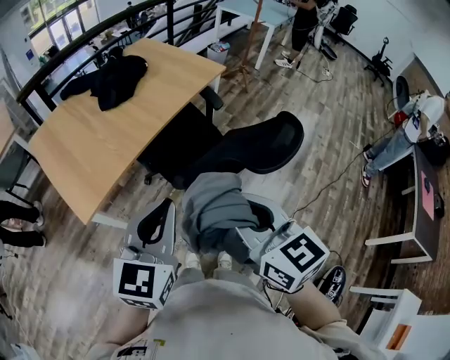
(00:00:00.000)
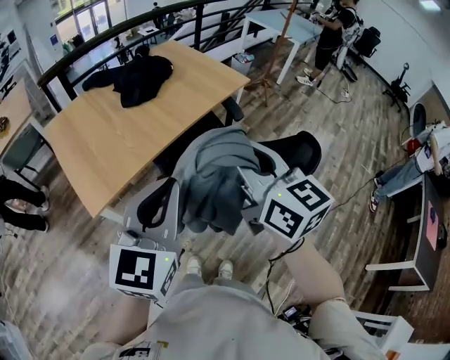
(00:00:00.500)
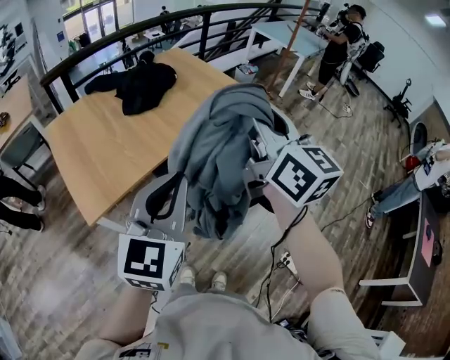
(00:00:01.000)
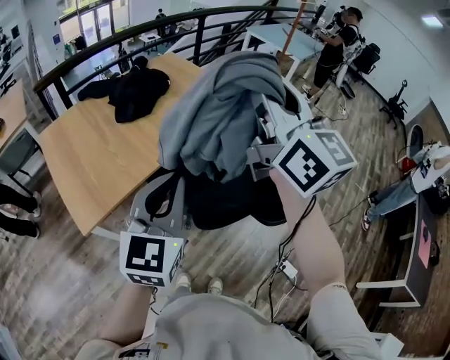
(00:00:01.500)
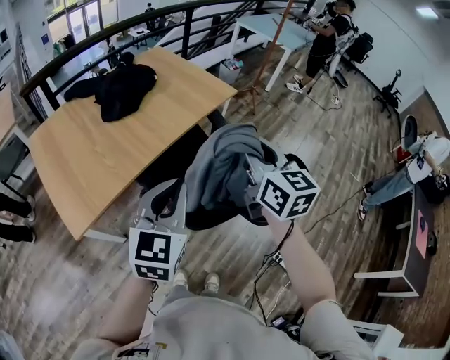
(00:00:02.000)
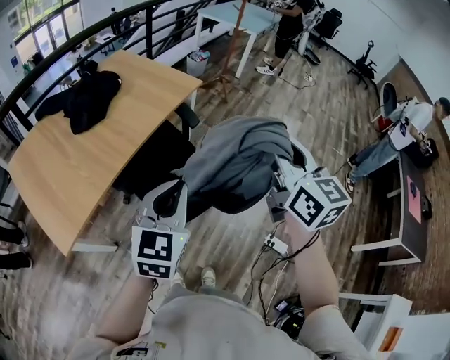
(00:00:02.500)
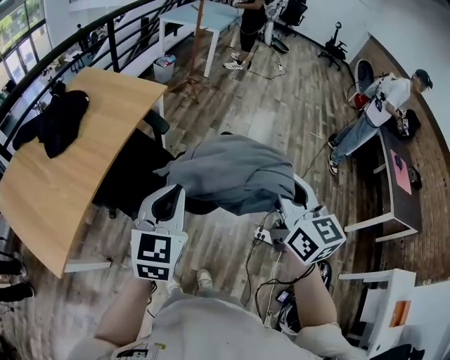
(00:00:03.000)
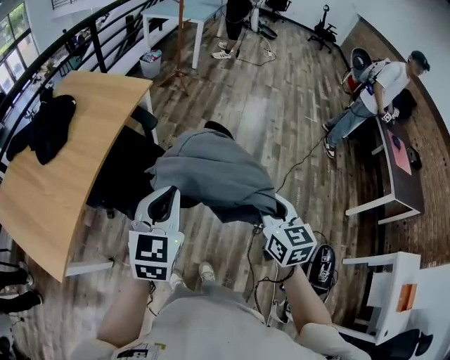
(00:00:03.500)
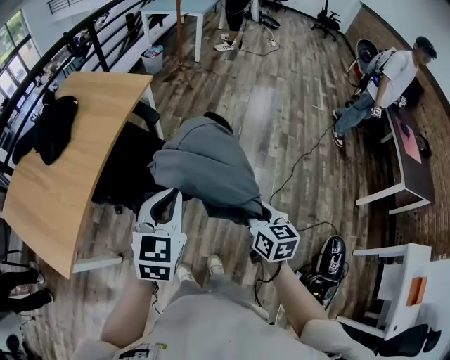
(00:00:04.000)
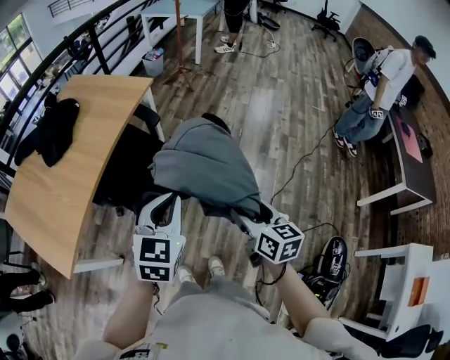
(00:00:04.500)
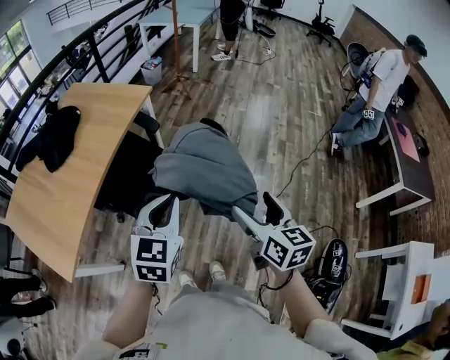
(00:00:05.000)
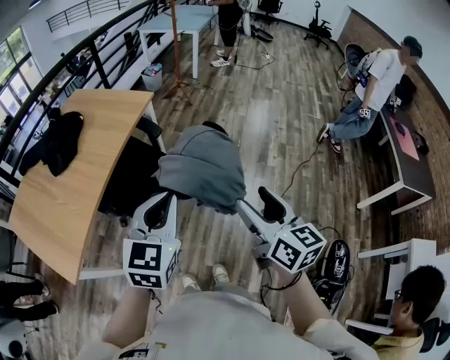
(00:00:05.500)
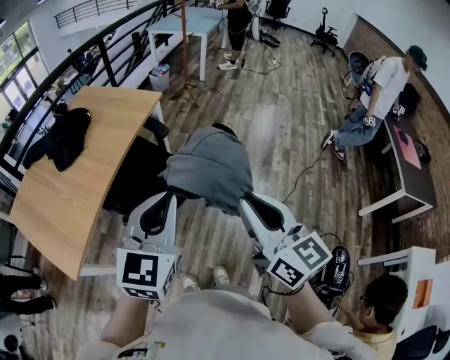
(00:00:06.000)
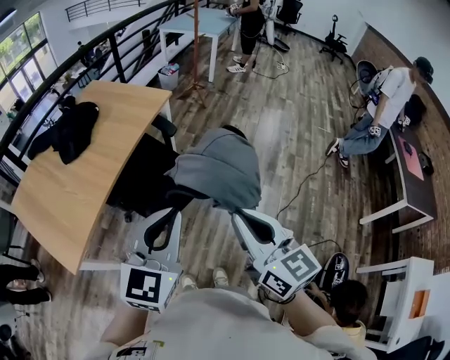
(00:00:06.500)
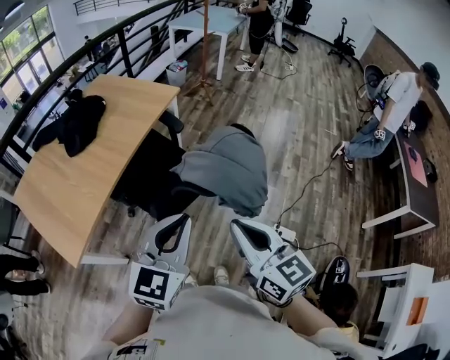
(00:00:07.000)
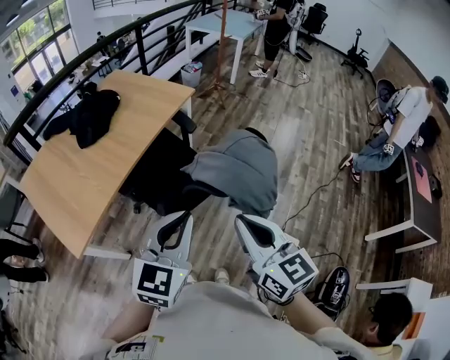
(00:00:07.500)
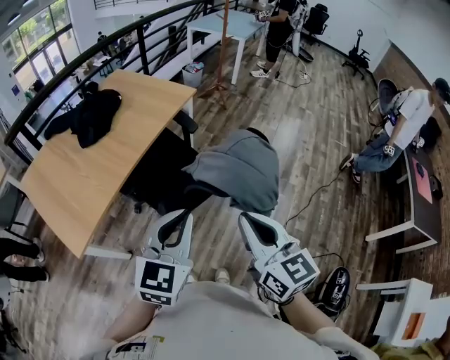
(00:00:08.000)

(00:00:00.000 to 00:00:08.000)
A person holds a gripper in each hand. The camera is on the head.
00:00:00.000 - 00:00:02.000: The right gripper shifts some 25 cm forward. Meanwhile the left gripper heads forward, covering approximately 15 cm.
00:00:02.000 - 00:00:04.000: The right gripper shifts by approximately 40 cm, and turns by some 40 degrees, while the left gripper shifts by approximately 25 cm, and turns by approximately 20 degrees.
00:00:04.000 - 00:00:06.000: The left gripper heads upward and backward, covering approximately 15 cm, while the right gripper is displaced upward by some 20 cm, swivels some 30 degrees, and opens, then closes again.
00:00:06.000 - 00:00:08.000: The left gripper shifts by roughly 5 cm. The right gripper is displaced to the left by approximately 5 cm.

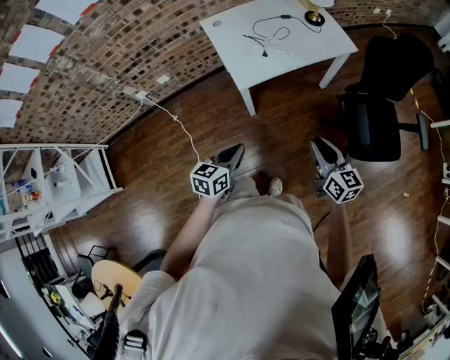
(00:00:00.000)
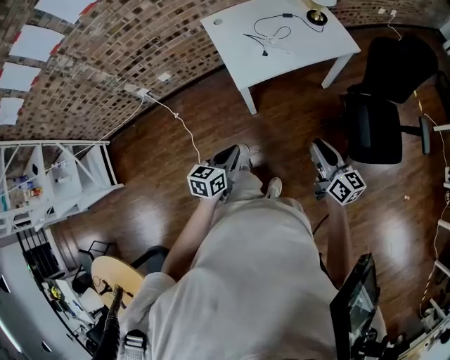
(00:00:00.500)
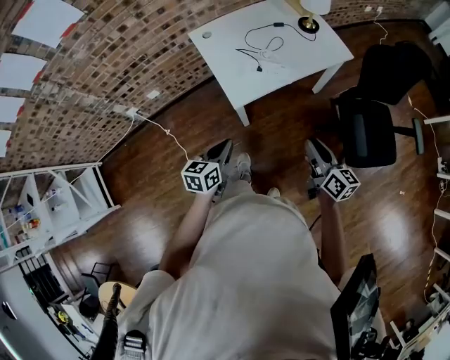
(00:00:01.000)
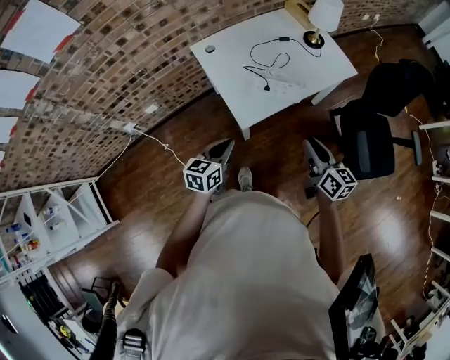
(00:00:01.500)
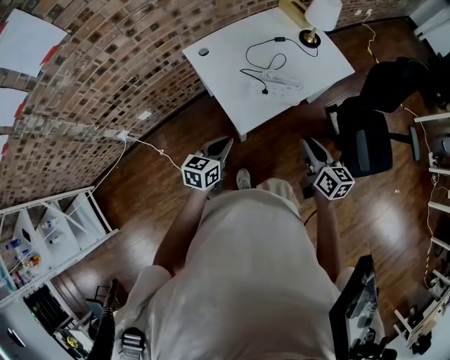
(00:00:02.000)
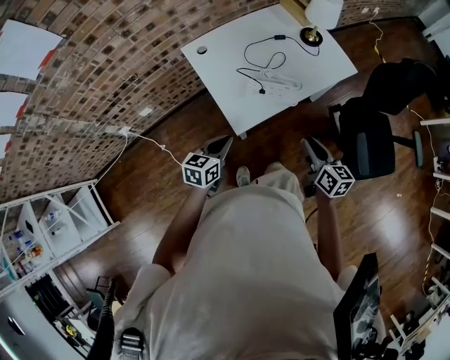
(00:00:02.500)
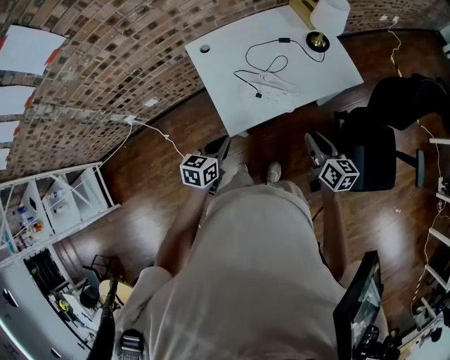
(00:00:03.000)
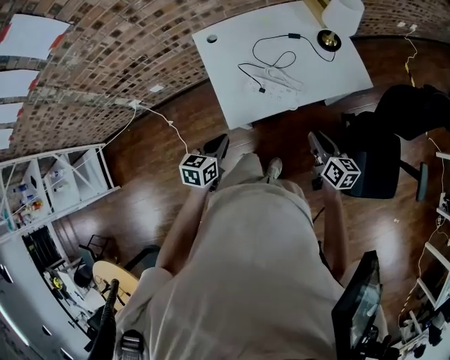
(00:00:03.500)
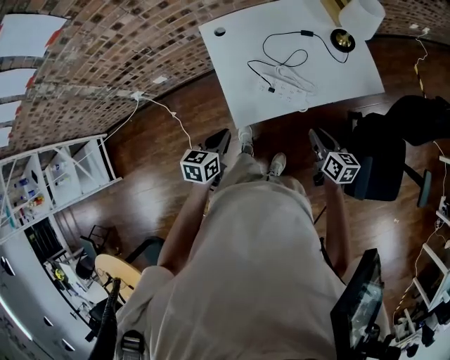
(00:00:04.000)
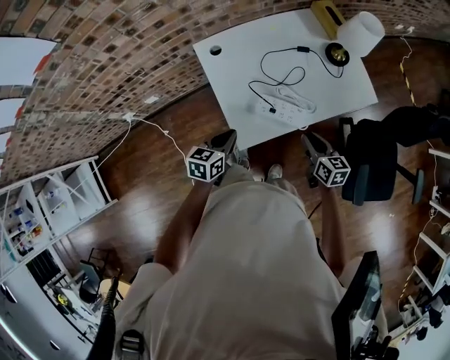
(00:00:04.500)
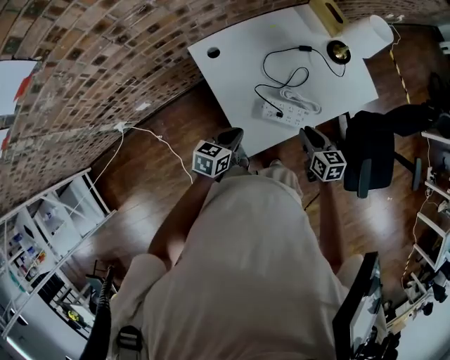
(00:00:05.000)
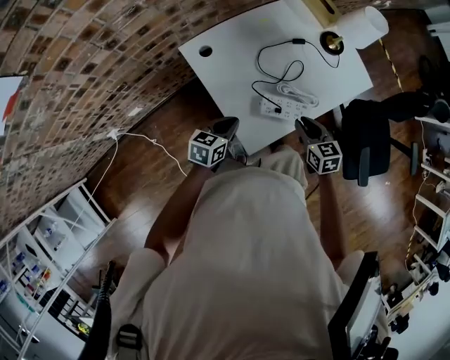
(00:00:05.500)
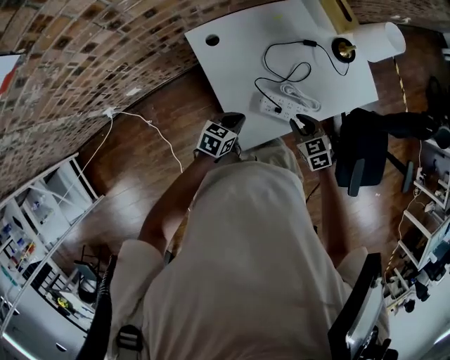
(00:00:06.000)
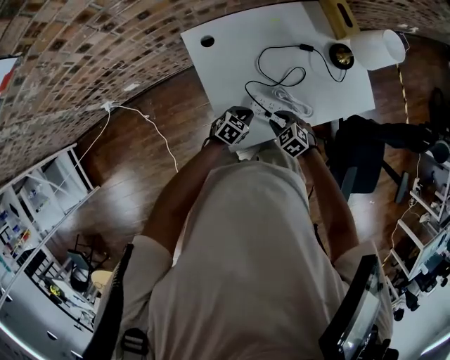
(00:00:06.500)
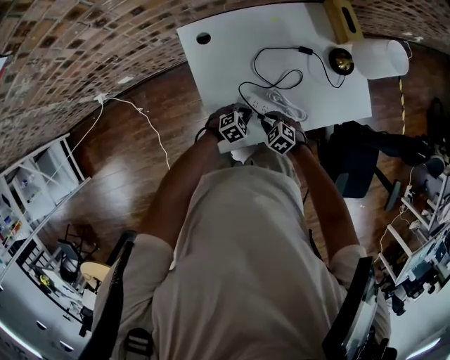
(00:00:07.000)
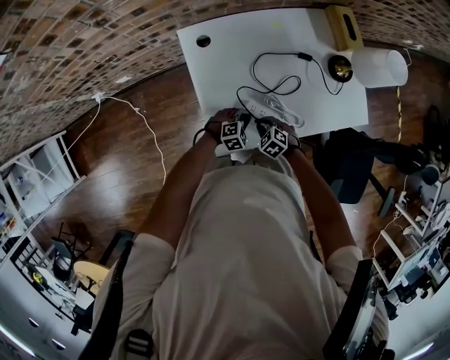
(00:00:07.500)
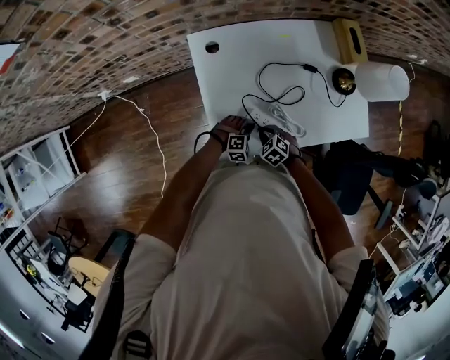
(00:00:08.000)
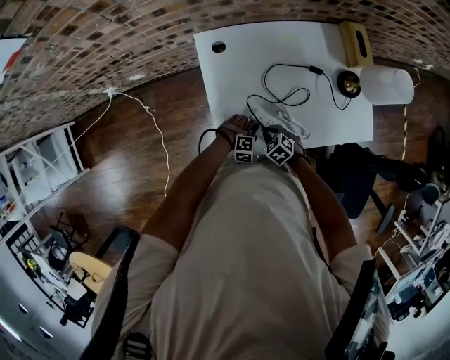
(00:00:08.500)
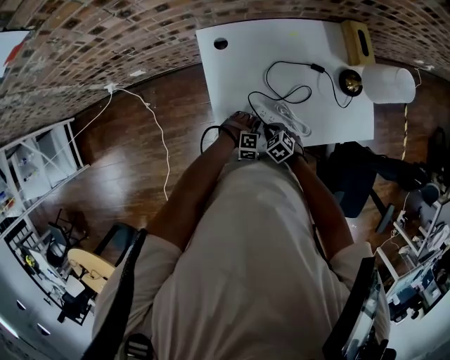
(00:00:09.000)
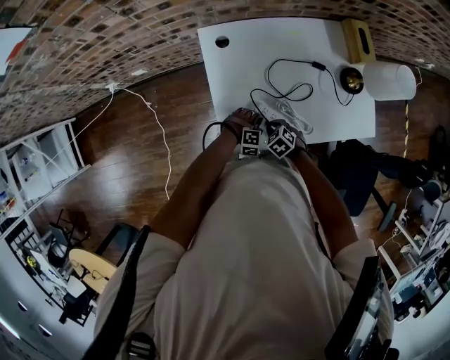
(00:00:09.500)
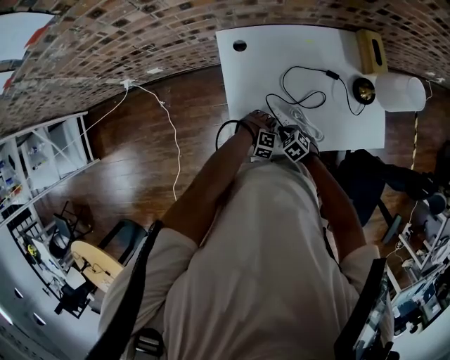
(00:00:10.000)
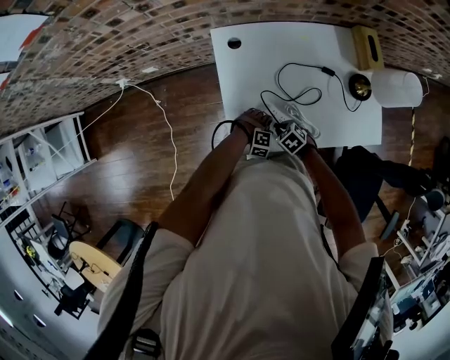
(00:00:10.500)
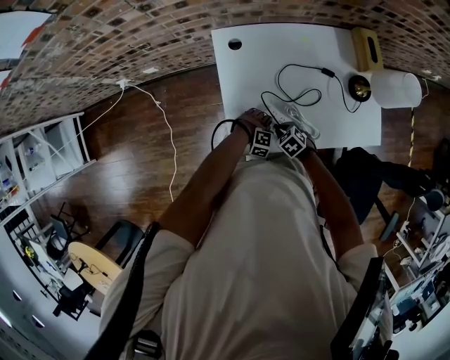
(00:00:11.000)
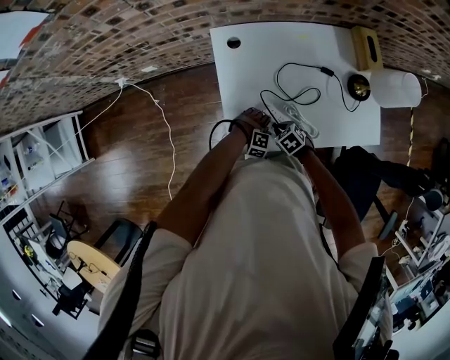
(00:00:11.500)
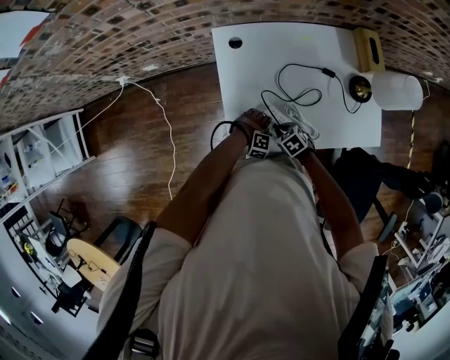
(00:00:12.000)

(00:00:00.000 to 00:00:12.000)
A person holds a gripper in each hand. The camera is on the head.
00:00:00.000 - 00:00:02.000: Both grippers move forward and to the left, roughly 25 cm.
00:00:02.000 - 00:00:04.000: The right gripper is displaced forward, downward and to the right by approximately 20 cm. Meanwhile the left gripper travels forward by roughly 5 cm, and changes its angle by approximately 20 degrees.
00:00:04.000 - 00:00:06.000: The right gripper moves to the left and forward, some 20 cm, and changes its angle by approximately 50 degrees, while the left gripper travels forward and downward by roughly 20 cm, and rotates some 30 degrees.
00:00:06.000 - 00:00:08.000: The two grippers go about 15 cm downward. The left gripper rolls clockwise, seen from behind, by roughly 60 degrees, while the right gripper swivels about 40 degrees.
00:00:08.000 - 00:00:10.000: The grippers move only a little.
00:00:10.000 - 00:00:12.000: The grippers make only small movements.

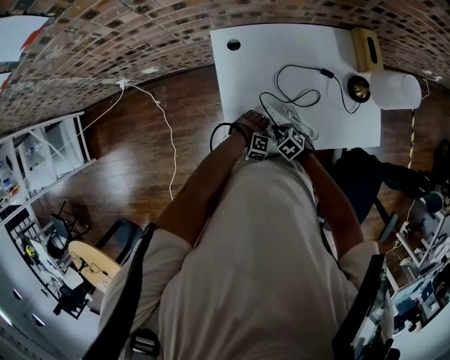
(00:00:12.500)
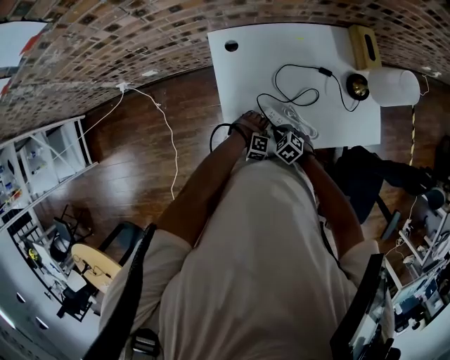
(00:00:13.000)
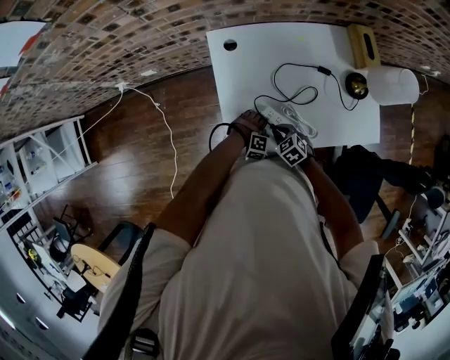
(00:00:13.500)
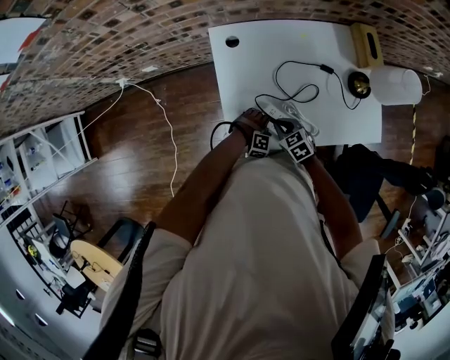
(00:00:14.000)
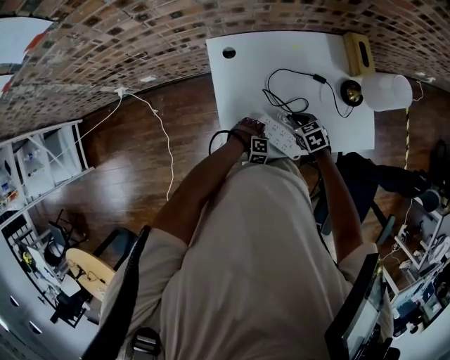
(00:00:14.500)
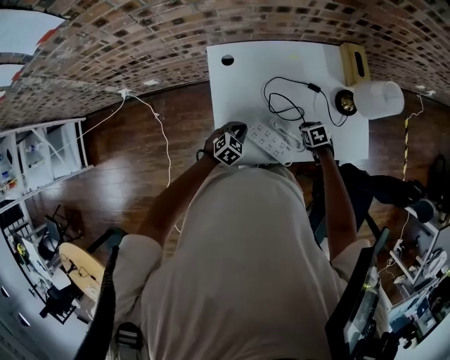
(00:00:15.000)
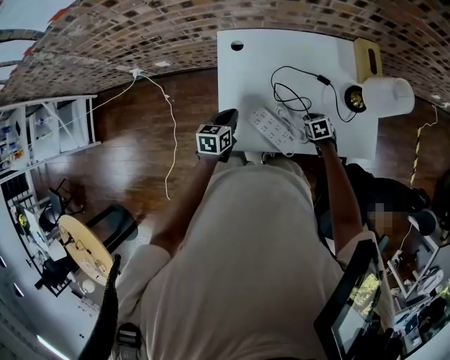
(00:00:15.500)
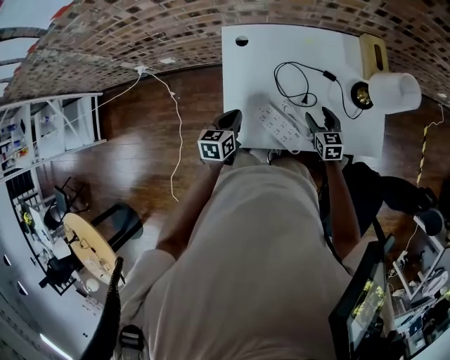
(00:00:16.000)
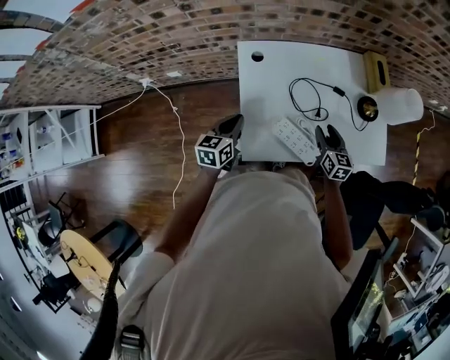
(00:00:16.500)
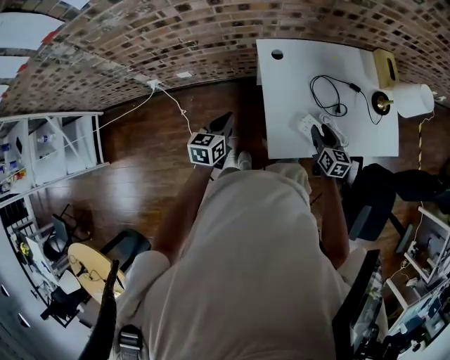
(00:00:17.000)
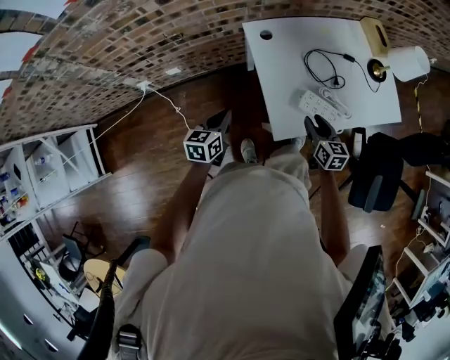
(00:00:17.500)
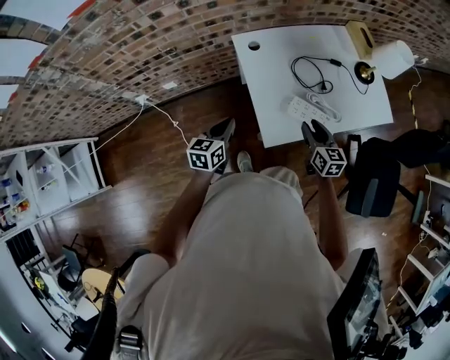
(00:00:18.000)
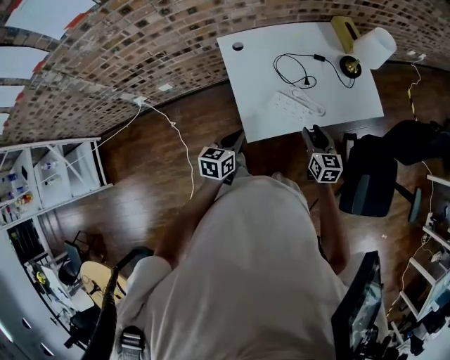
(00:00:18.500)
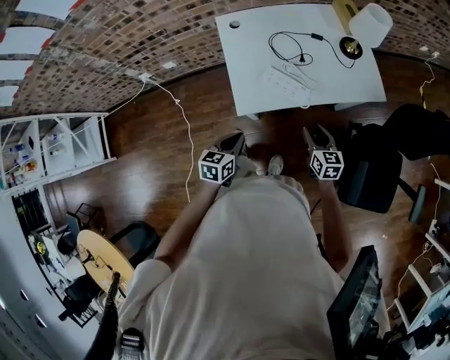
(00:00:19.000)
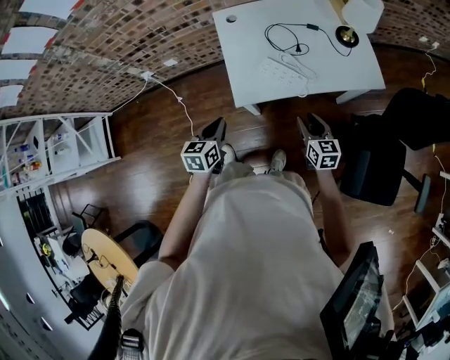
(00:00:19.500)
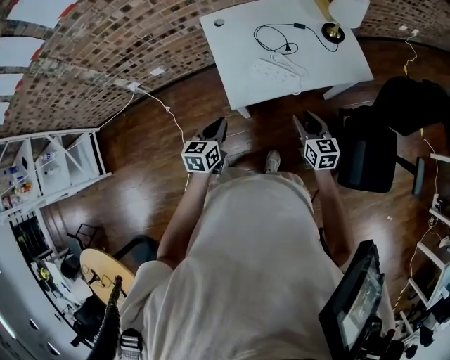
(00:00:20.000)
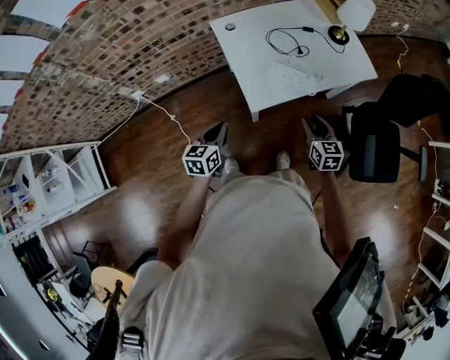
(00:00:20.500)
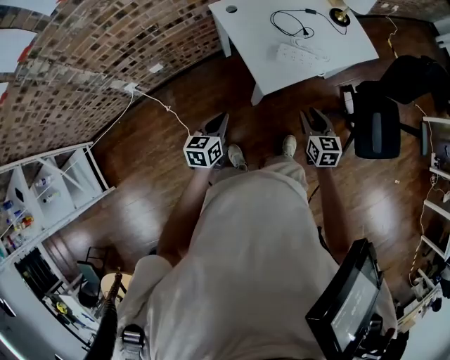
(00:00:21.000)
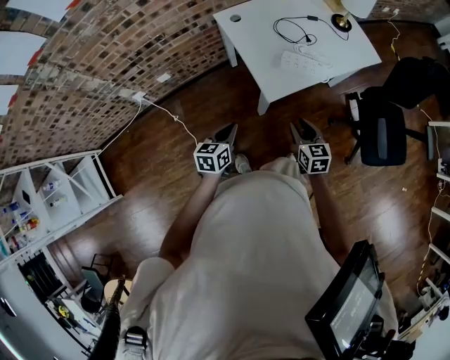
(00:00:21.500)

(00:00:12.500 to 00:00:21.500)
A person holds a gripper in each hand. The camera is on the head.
00:00:12.500 - 00:00:14.500: The right gripper travels upward, to the right and forward by some 15 cm, and changes its angle by approximately 20 degrees.
00:00:14.500 - 00:00:17.000: The right gripper goes approximately 10 cm to the left, upward and backward, rotates about 40 degrees, and opens up. The left gripper is displaced to the left and upward by roughly 40 cm, and rolls counterclockwise, seen from behind, by approximately 90 degrees.
00:00:17.000 - 00:00:19.500: Both grippers travel together backward and to the right, roughly 30 cm.
00:00:19.500 - 00:00:21.500: The left gripper moves to the left, roughly 15 cm, and rotates roughly 20 degrees, while the right gripper shifts approximately 25 cm to the left and backward.
